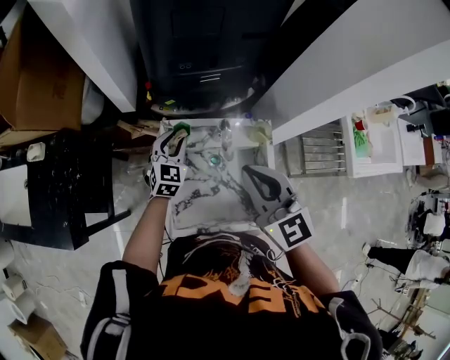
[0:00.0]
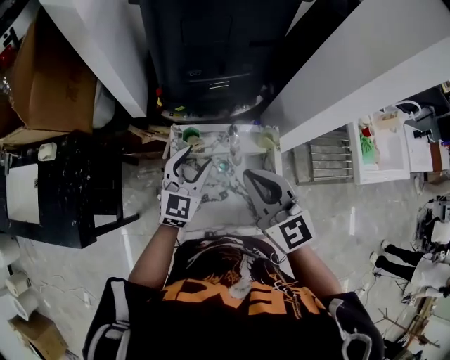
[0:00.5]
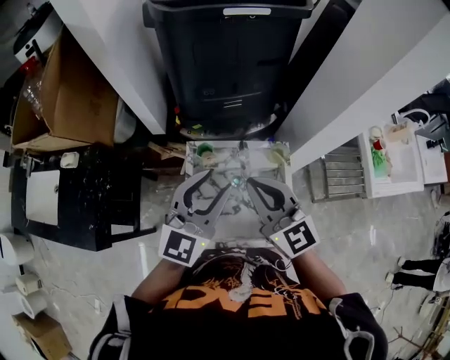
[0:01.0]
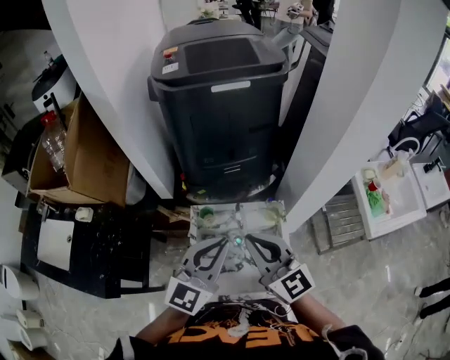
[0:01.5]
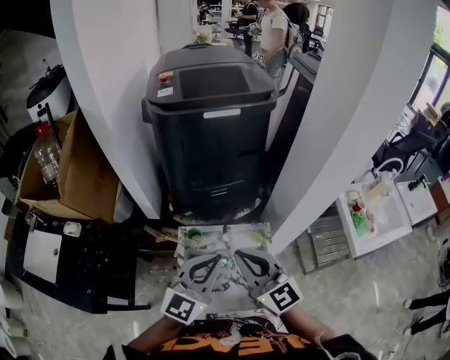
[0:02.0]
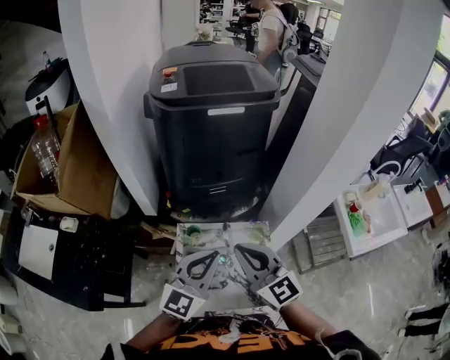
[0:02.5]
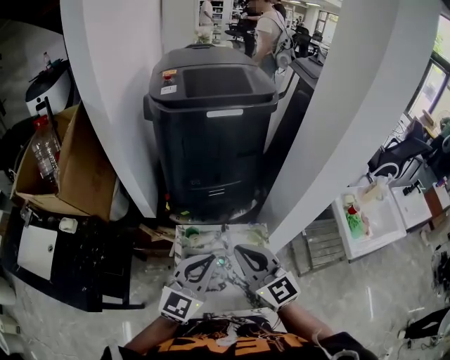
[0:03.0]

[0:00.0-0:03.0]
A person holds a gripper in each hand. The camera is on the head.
0:00.0 to 0:01.5: The left gripper shifts roughly 35 cm upward and backward, swivels approximately 30 degrees, and closes. Meanwhile the right gripper goes roughly 5 cm upward.
0:01.5 to 0:03.0: The grippers stay close to where they were, moving slightly.

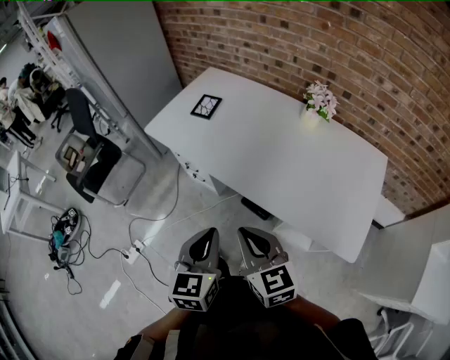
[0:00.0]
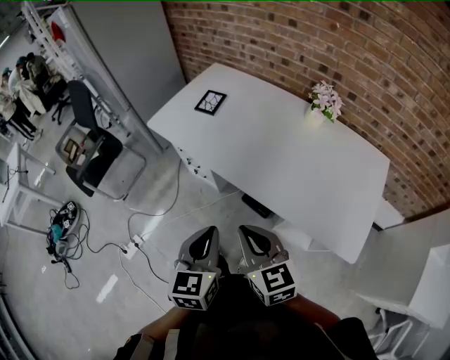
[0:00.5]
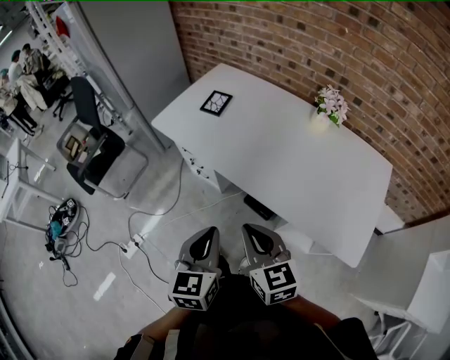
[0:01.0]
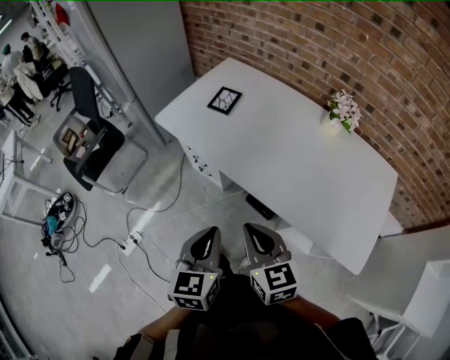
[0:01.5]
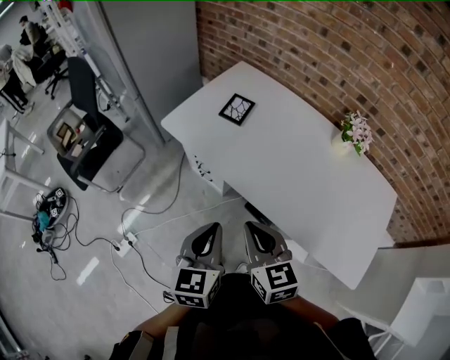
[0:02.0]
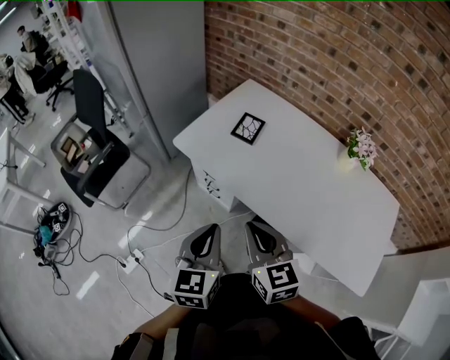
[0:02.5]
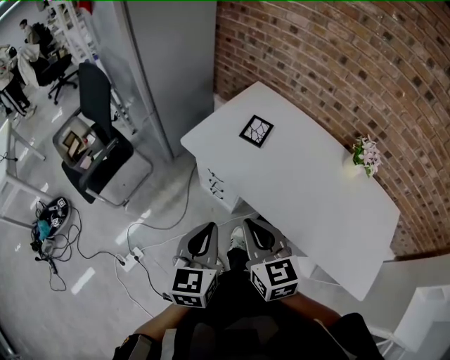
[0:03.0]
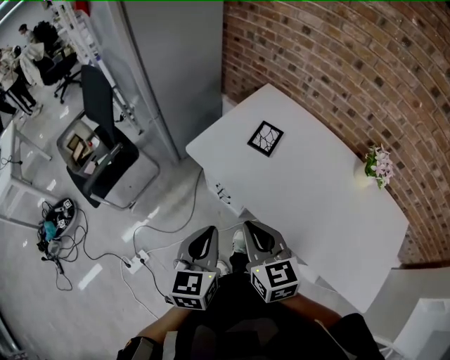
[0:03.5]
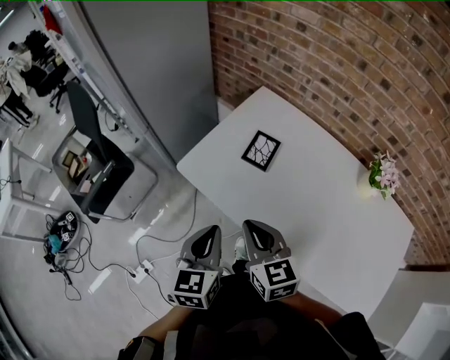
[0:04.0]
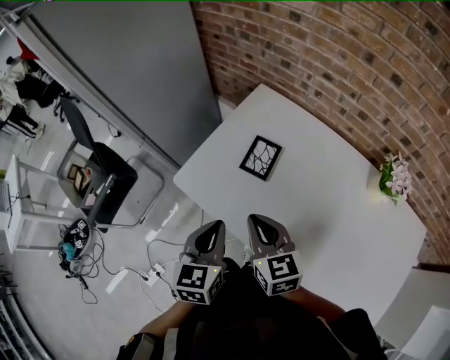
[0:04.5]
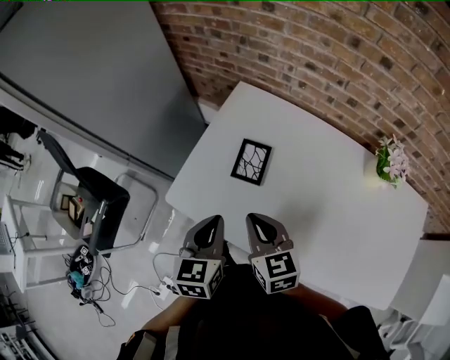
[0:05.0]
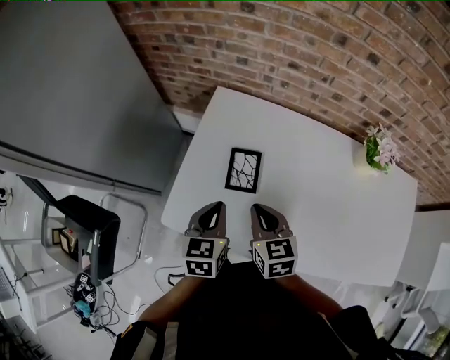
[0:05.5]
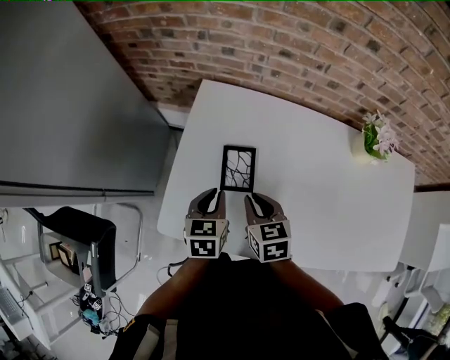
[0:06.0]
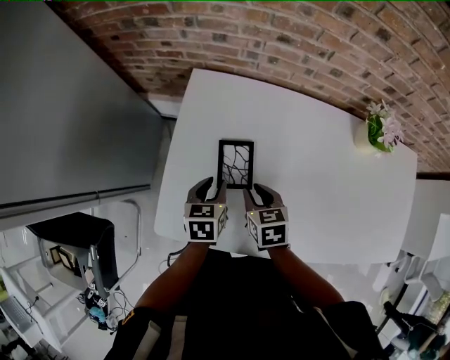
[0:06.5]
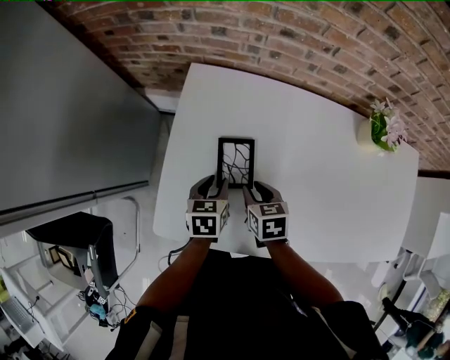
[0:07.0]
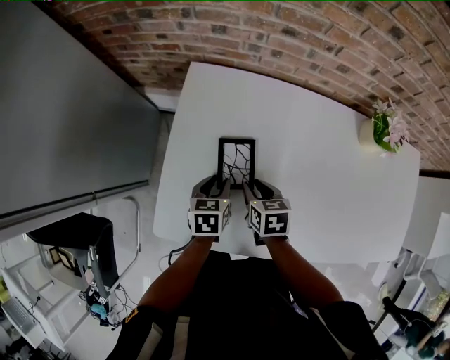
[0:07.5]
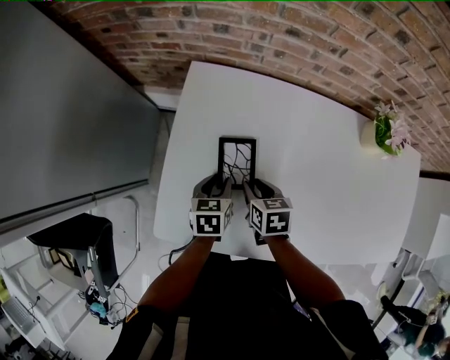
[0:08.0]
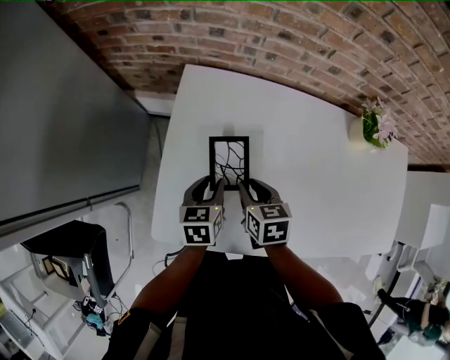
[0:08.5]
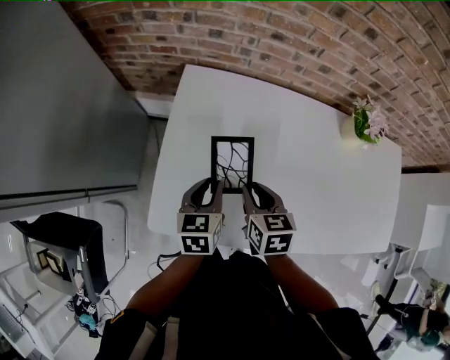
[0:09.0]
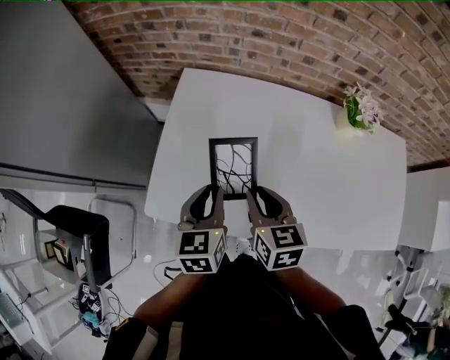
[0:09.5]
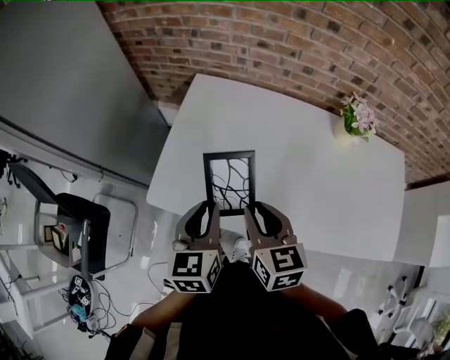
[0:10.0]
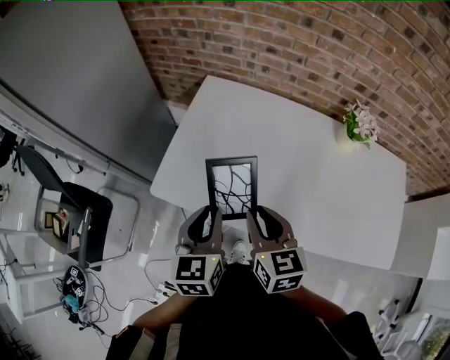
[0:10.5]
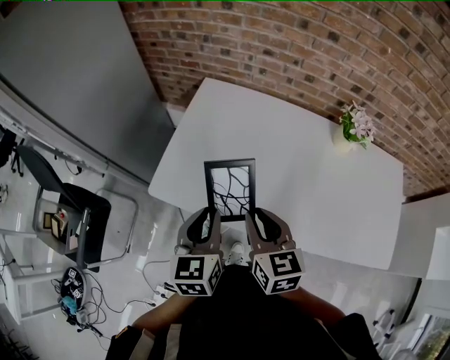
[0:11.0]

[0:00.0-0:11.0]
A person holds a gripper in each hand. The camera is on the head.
0:00.0 to 0:02.0: Both grippers travel together forward and to the left, approximately 15 cm.
0:02.0 to 0:03.5: The left gripper shifts some 15 cm to the left and forward. The right gripper is displaced forward and to the left by about 15 cm.
0:03.5 to 0:05.5: The left gripper shifts by roughly 35 cm, and rotates some 30 degrees. Meanwhile the right gripper ends up about 30 cm from where it was, and turns by about 30 degrees.
0:05.5 to 0:07.5: The grippers both shift downward and forward by some 15 cm. The right gripper rotates approximately 30 degrees, and opens up, while the left gripper opens up.
0:07.5 to 0:09.0: Both grippers travel together upward, about 10 cm.
0:09.0 to 0:11.0: The two grippers go some 25 cm backward and upward. The left gripper changes its angle by about 20 degrees; the right gripper swivels roughly 20 degrees.

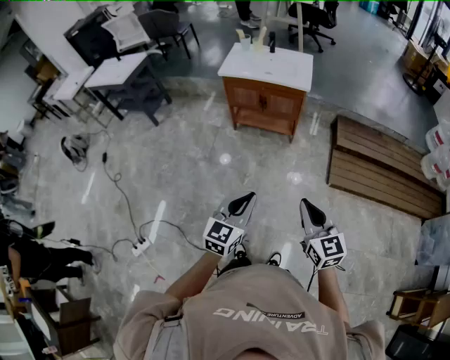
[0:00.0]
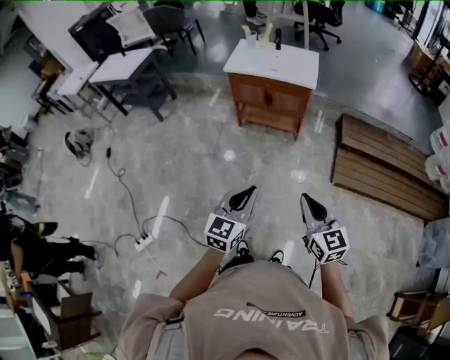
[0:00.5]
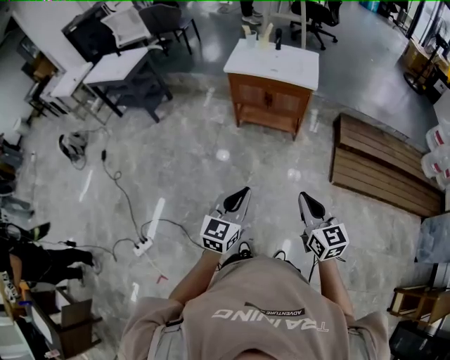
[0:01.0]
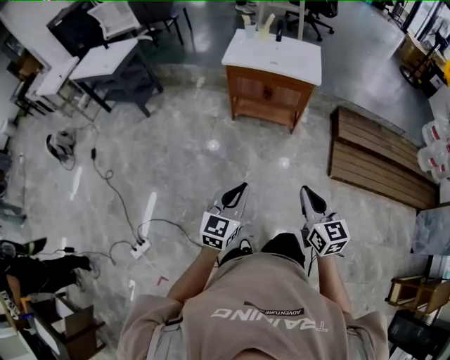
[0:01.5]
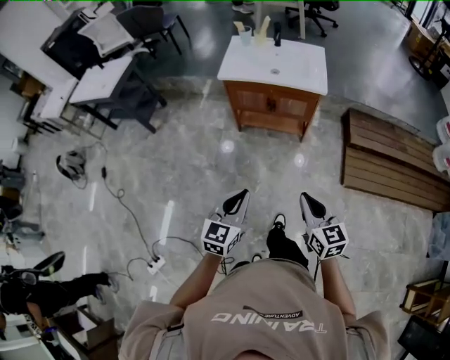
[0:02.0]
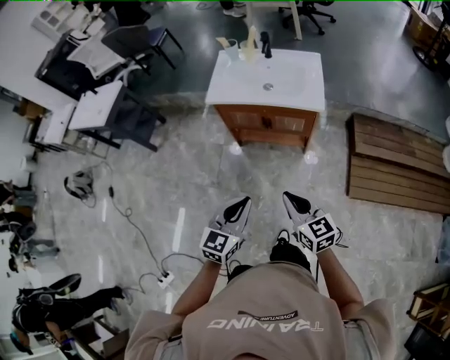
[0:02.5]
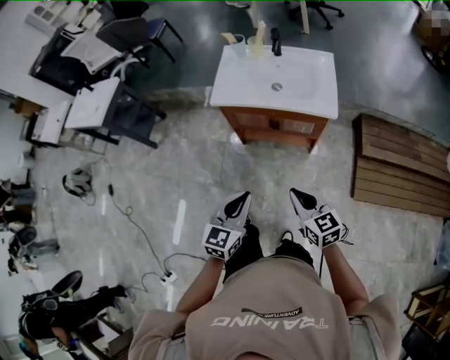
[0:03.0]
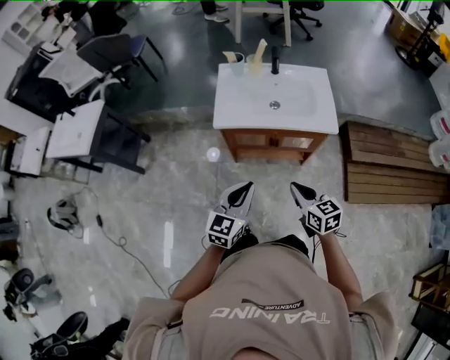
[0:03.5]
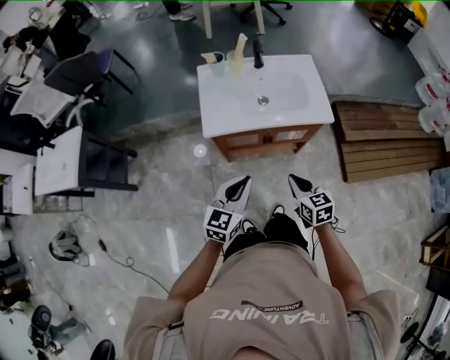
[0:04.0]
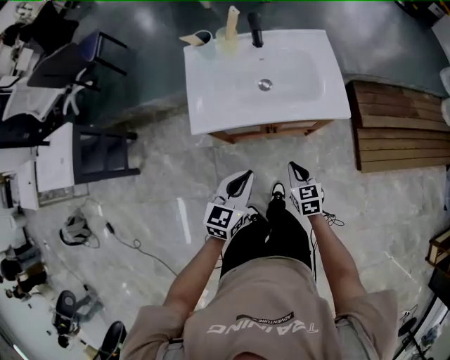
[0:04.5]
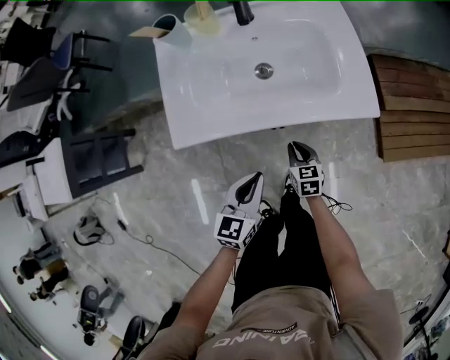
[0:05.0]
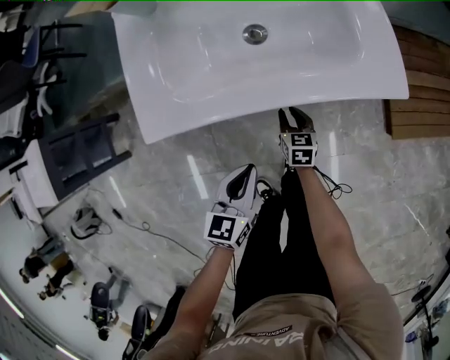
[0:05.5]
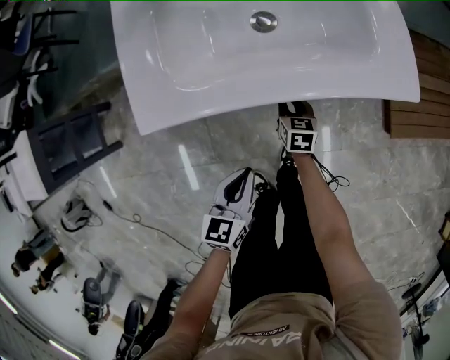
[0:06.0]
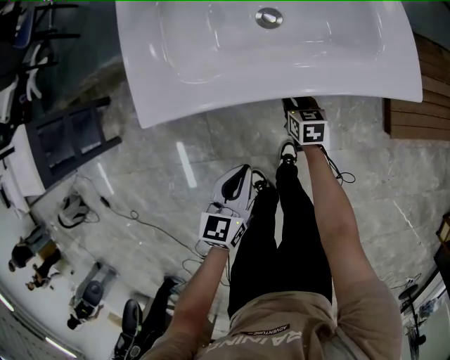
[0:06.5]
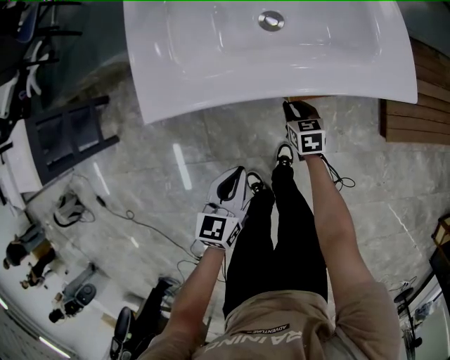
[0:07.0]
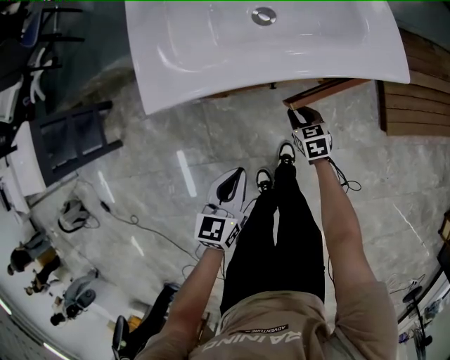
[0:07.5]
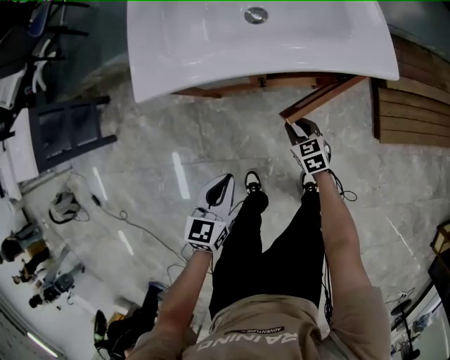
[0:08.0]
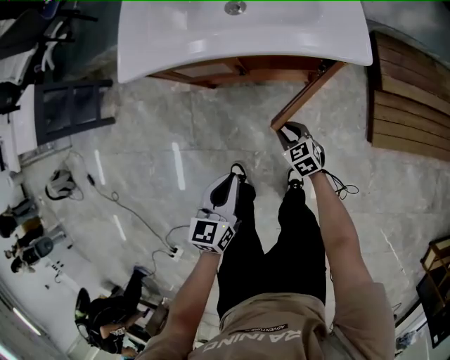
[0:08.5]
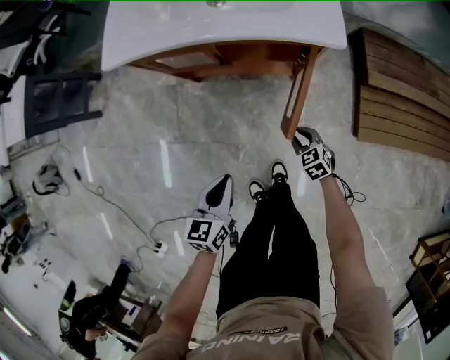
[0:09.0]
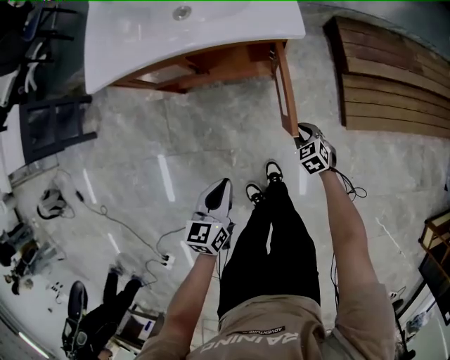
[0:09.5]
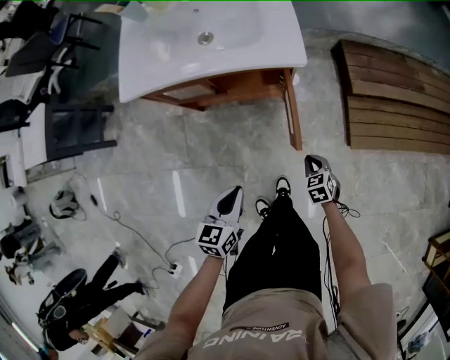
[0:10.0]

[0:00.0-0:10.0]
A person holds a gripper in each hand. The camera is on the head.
0:00.0 to 0:02.0: Both grippers move forward and to the left, about 20 cm.
0:02.0 to 0:04.0: Both grippers travel together forward, roughly 35 cm. The left gripper rotates approximately 20 degrees.
0:04.0 to 0:06.0: The left gripper heads downward, covering roughly 25 cm, and turns by some 20 degrees. Meanwhile the right gripper heads downward and forward, covering some 40 cm, swivels some 20 degrees, and opens its fingers.
0:06.0 to 0:08.0: The left gripper shifts approximately 5 cm backward. Meanwhile the right gripper heads backward, covering approximately 10 cm, and changes its angle by approximately 30 degrees.
0:08.0 to 0:10.0: Both grippers move to the right and backward, approximately 25 cm.

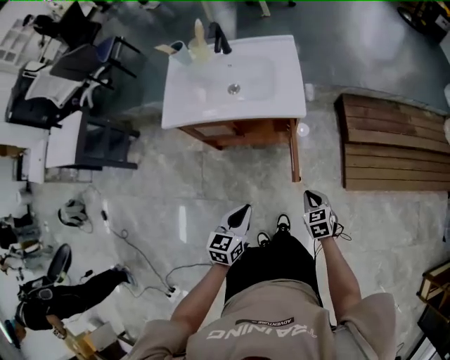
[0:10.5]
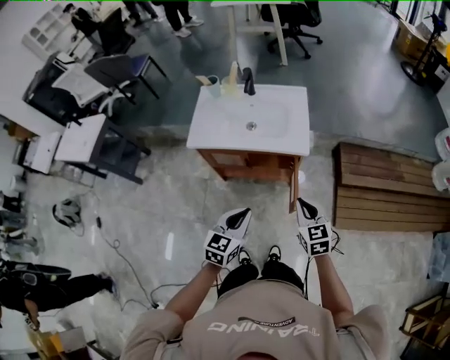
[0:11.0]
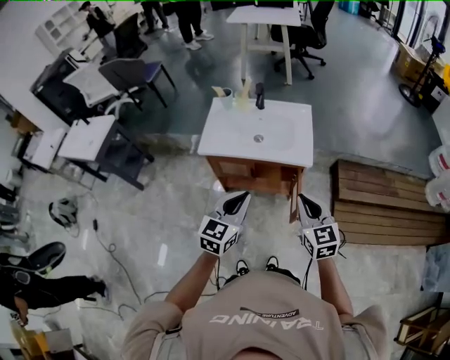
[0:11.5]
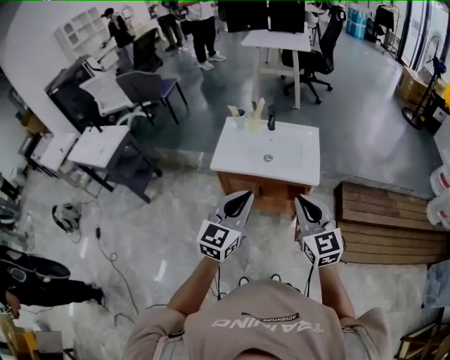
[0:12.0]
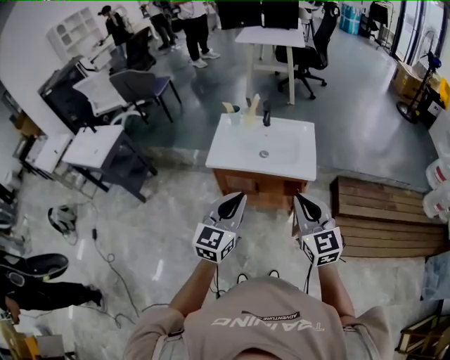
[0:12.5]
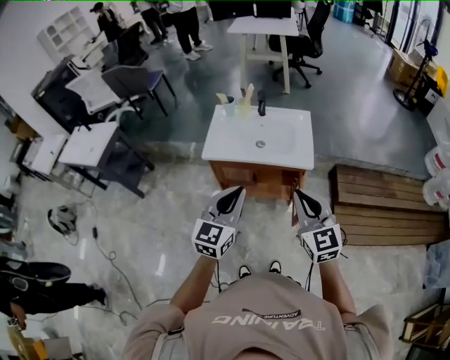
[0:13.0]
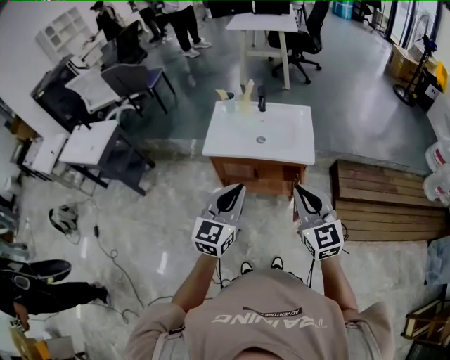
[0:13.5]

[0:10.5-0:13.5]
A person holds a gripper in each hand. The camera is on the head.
0:10.5 to 0:12.0: The two grippers go about 35 cm upward. The right gripper angles its fingers upward, by about 40 degrees. The left gripper rotates roughly 30 degrees.
0:12.0 to 0:13.5: The grippers stay close to where they were, moving slightly.
